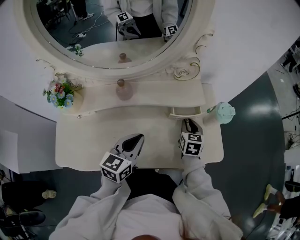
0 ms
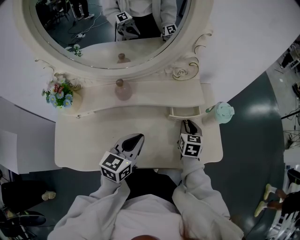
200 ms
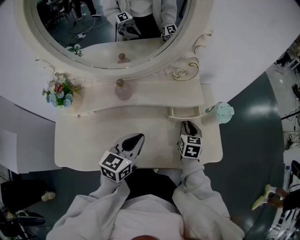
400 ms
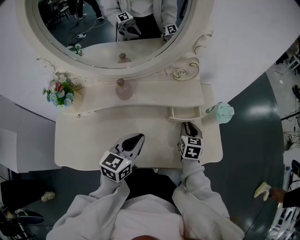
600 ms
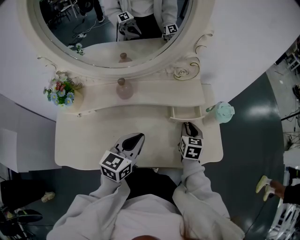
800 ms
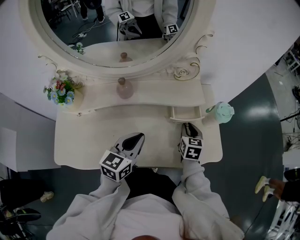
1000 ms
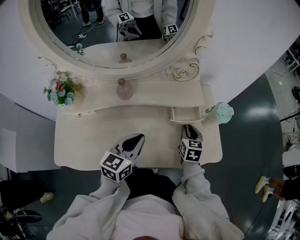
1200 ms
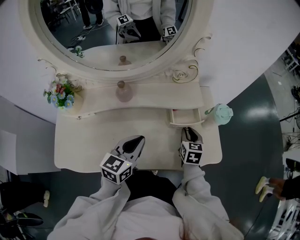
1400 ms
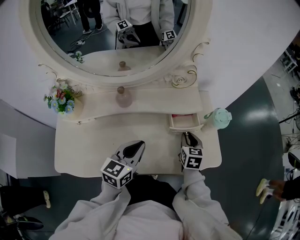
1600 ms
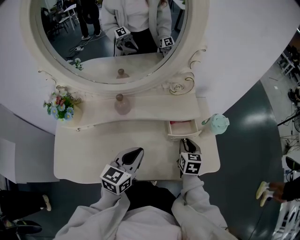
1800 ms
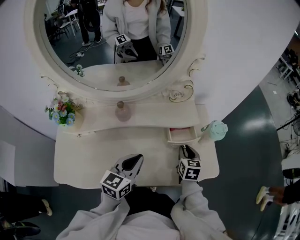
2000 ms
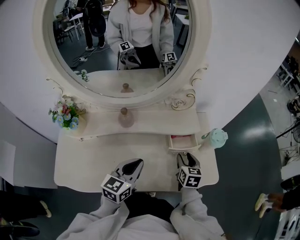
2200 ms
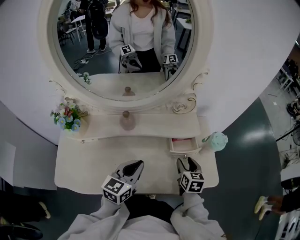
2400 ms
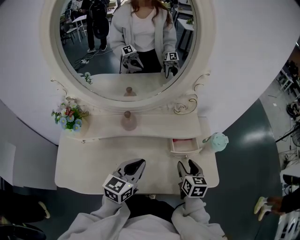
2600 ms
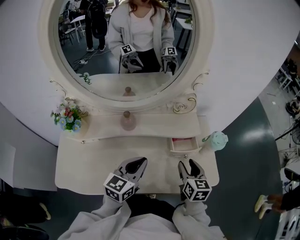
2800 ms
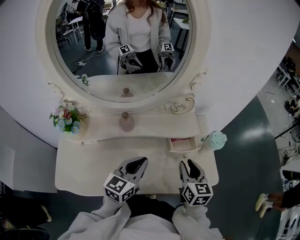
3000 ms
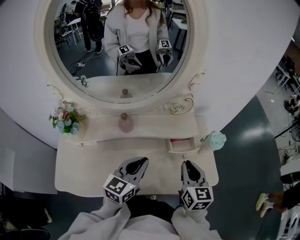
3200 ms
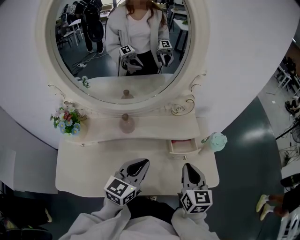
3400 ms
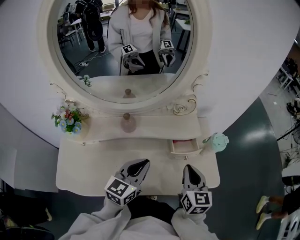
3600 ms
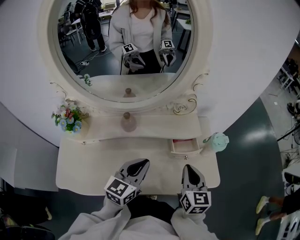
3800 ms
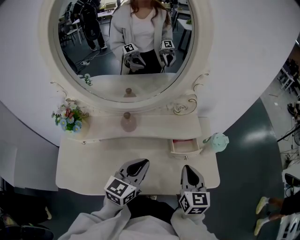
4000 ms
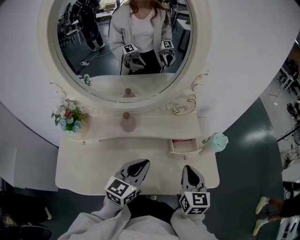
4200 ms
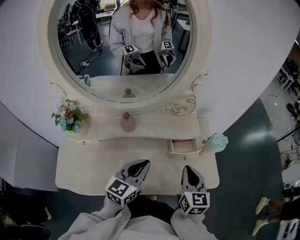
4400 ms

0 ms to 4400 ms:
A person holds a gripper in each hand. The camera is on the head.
0 ms to 1400 ms: The grippers stay close to where they were, moving slightly.
1400 ms to 3000 ms: The right gripper is displaced upward and backward by about 15 cm, and opens, then closes again.
3000 ms to 4400 ms: The right gripper closes.

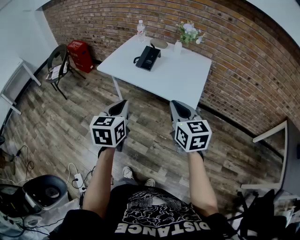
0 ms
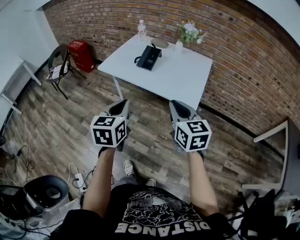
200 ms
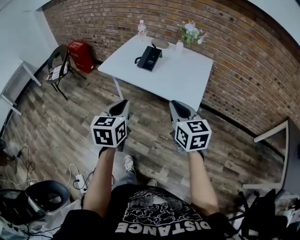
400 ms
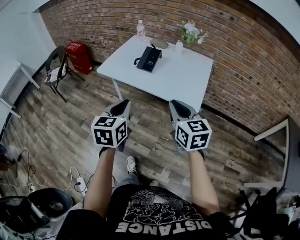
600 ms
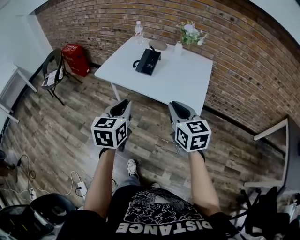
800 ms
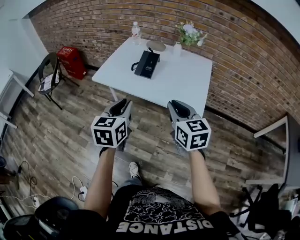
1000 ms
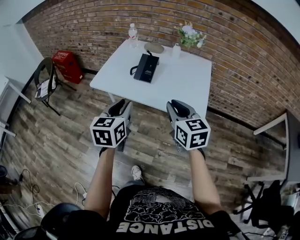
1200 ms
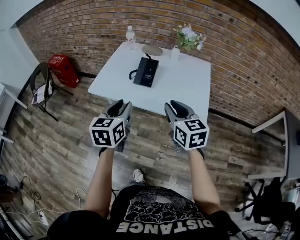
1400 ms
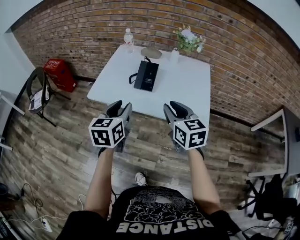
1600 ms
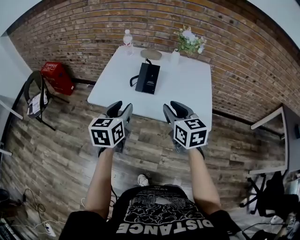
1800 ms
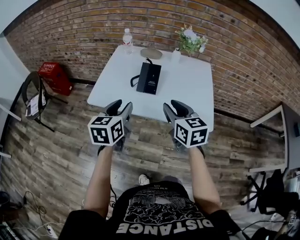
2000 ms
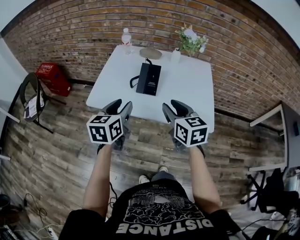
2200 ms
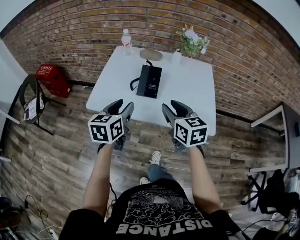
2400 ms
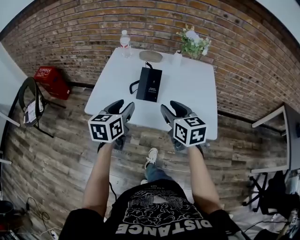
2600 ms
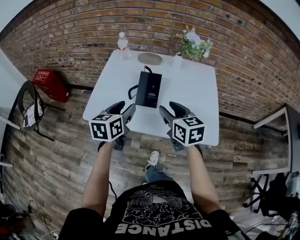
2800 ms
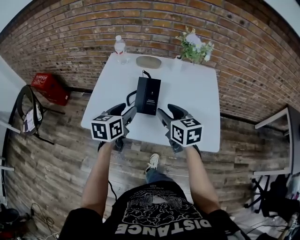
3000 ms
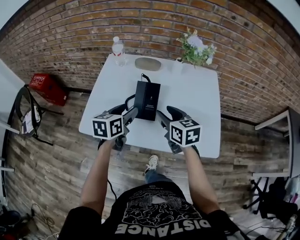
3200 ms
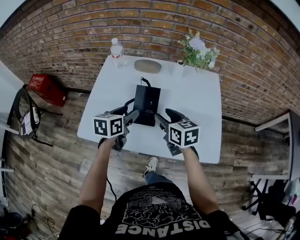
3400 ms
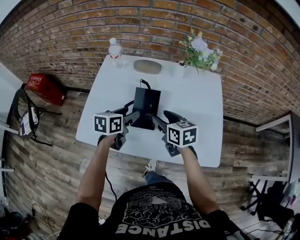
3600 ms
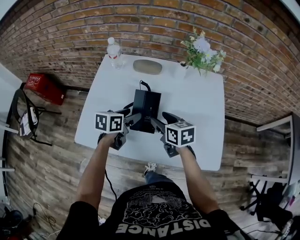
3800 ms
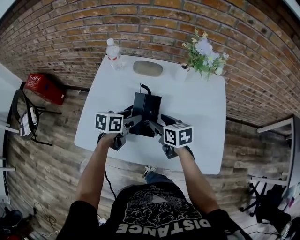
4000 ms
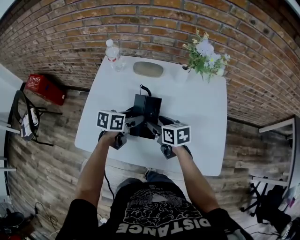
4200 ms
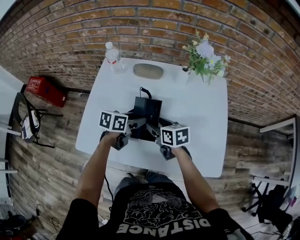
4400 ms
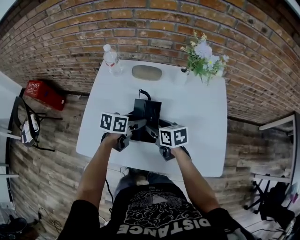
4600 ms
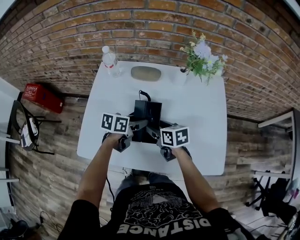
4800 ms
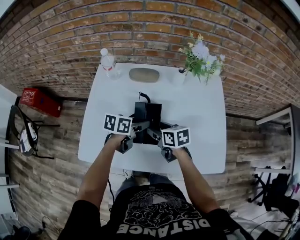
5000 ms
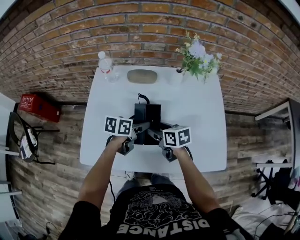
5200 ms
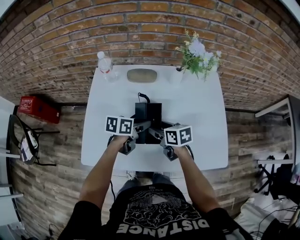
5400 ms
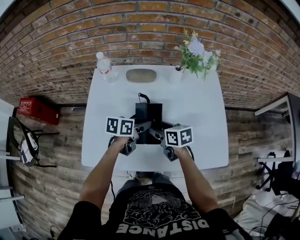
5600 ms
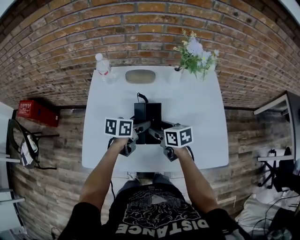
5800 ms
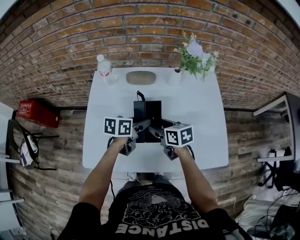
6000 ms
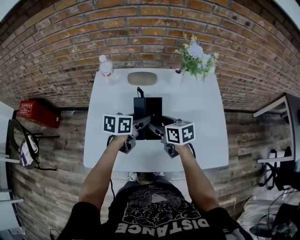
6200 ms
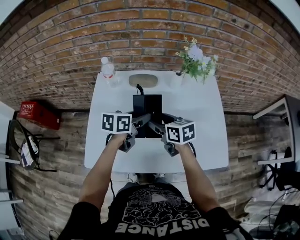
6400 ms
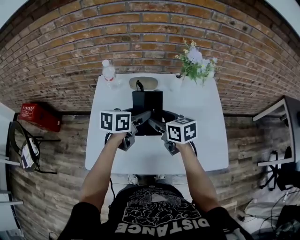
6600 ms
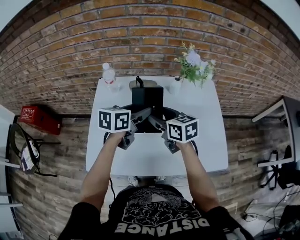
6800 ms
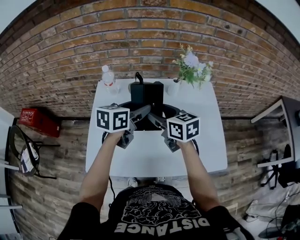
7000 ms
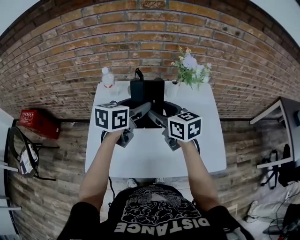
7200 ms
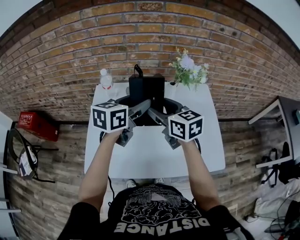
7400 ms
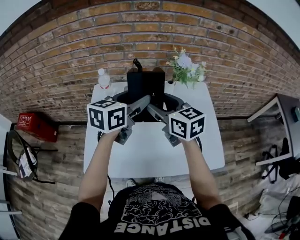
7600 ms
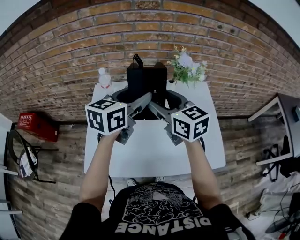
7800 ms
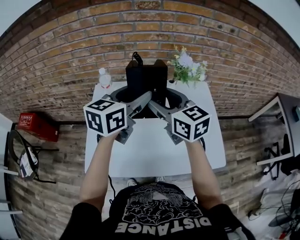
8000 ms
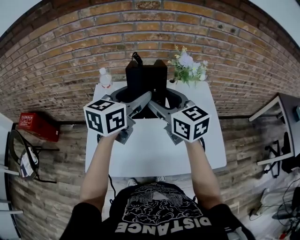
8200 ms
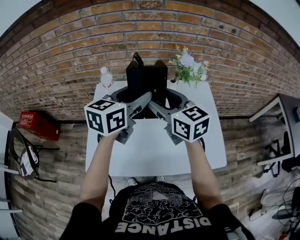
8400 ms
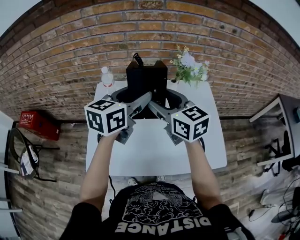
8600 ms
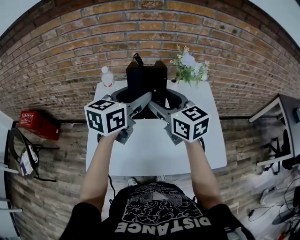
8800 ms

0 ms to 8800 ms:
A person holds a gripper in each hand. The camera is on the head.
0 ms to 1400 ms: The left gripper goes roughly 20 cm forward, and opens. Meanwhile the right gripper travels forward and to the left by approximately 20 cm.
1400 ms to 3000 ms: Both grippers travel together forward, some 25 cm. The right gripper opens up.
3000 ms to 4400 ms: The left gripper moves forward and downward, about 20 cm, and swivels approximately 30 degrees. Meanwhile the right gripper goes approximately 20 cm downward and forward, and turns by about 20 degrees.
4400 ms to 5800 ms: The grippers move only a little.
5800 ms to 7400 ms: Both grippers move upward, approximately 20 cm. The right gripper rotates some 30 degrees; the left gripper rotates approximately 30 degrees.
7400 ms to 8800 ms: The right gripper shifts by about 5 cm. Meanwhile the left gripper travels upward by approximately 5 cm.

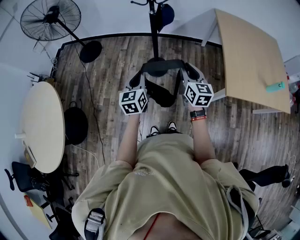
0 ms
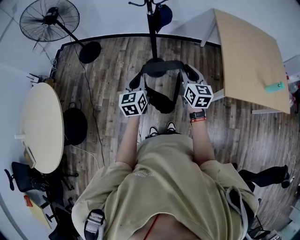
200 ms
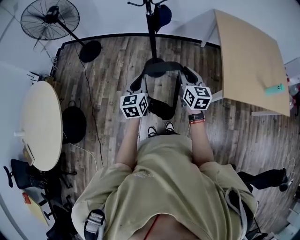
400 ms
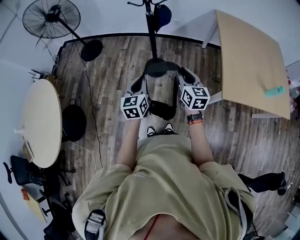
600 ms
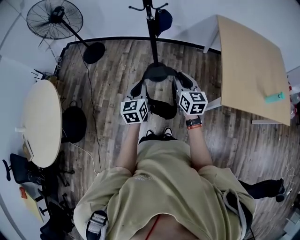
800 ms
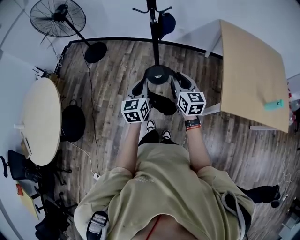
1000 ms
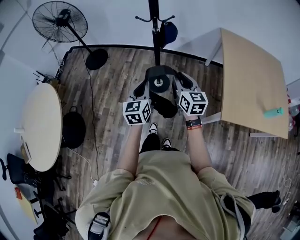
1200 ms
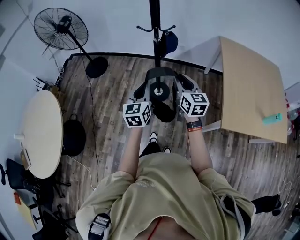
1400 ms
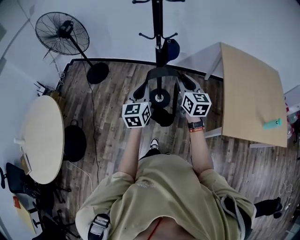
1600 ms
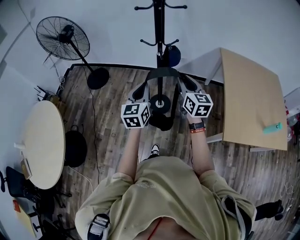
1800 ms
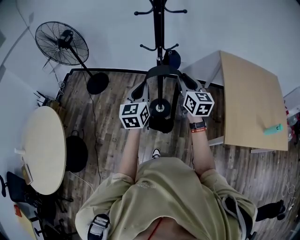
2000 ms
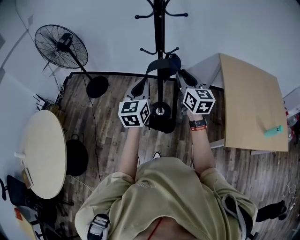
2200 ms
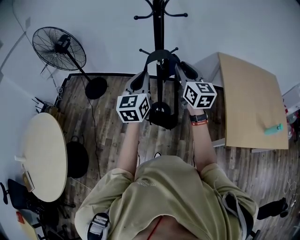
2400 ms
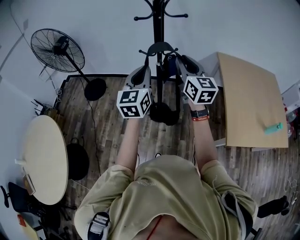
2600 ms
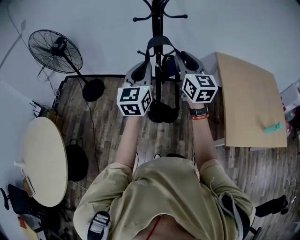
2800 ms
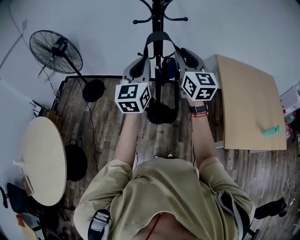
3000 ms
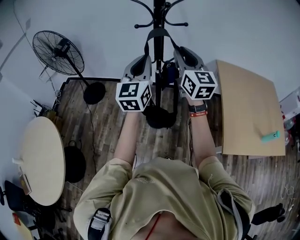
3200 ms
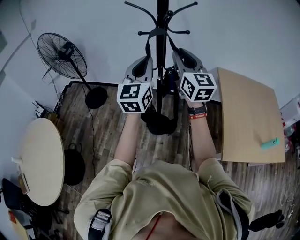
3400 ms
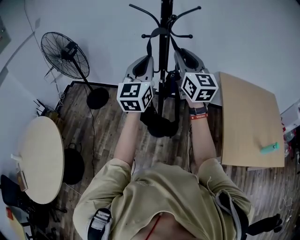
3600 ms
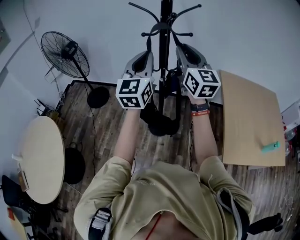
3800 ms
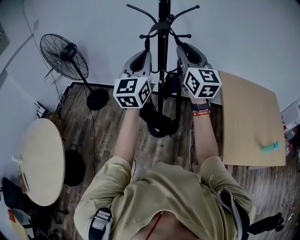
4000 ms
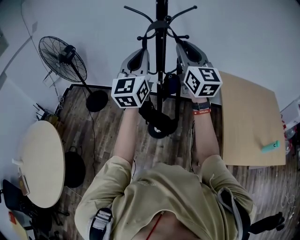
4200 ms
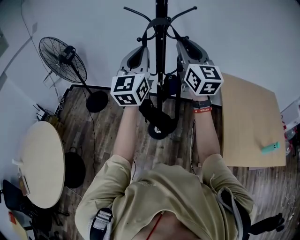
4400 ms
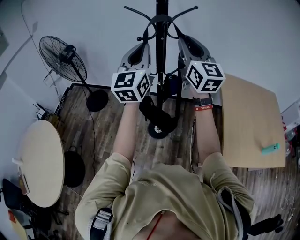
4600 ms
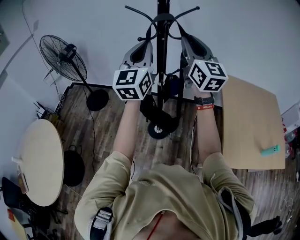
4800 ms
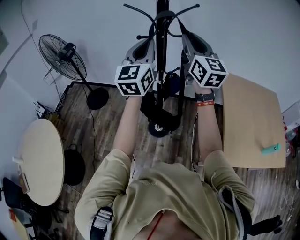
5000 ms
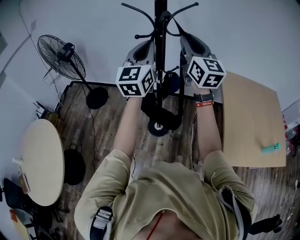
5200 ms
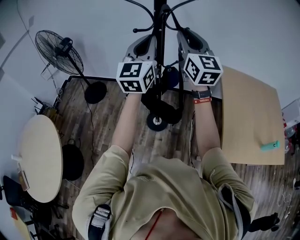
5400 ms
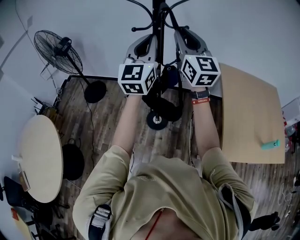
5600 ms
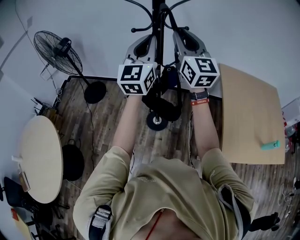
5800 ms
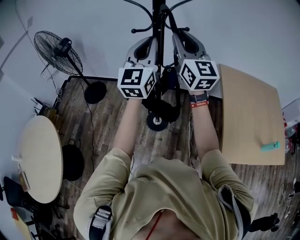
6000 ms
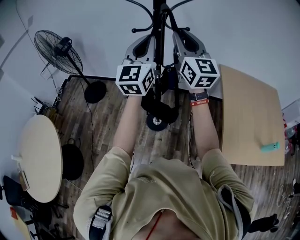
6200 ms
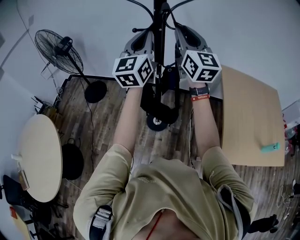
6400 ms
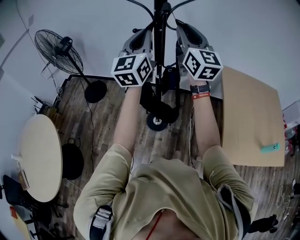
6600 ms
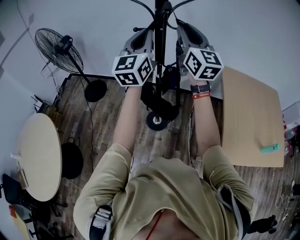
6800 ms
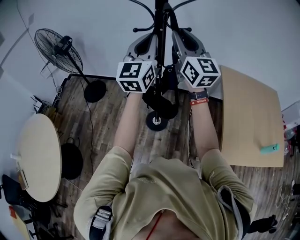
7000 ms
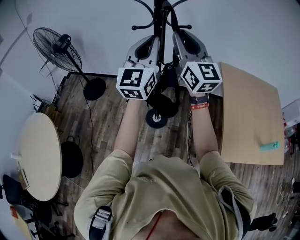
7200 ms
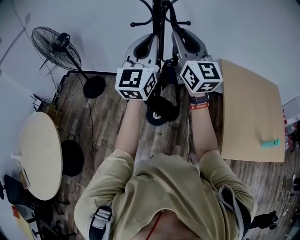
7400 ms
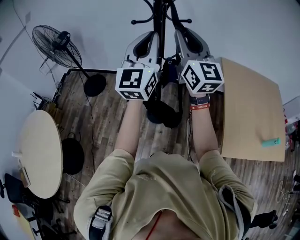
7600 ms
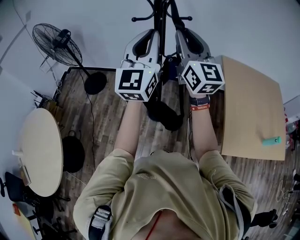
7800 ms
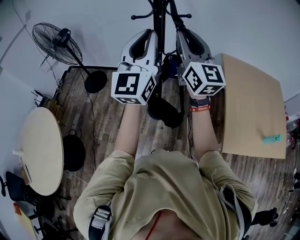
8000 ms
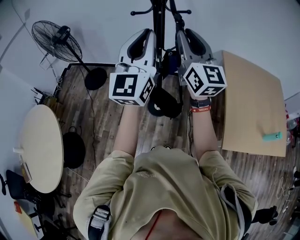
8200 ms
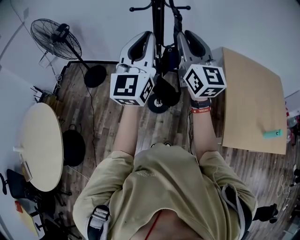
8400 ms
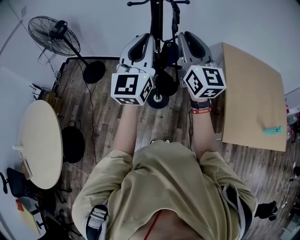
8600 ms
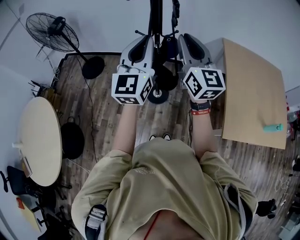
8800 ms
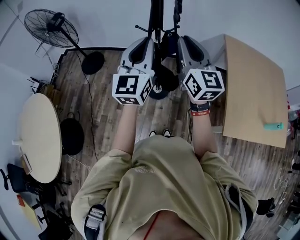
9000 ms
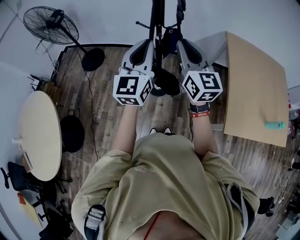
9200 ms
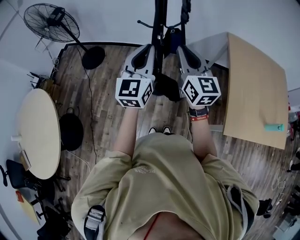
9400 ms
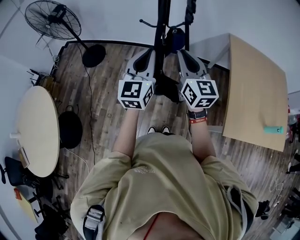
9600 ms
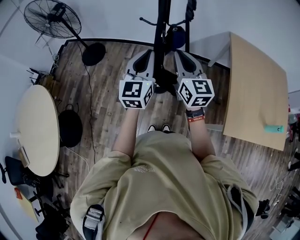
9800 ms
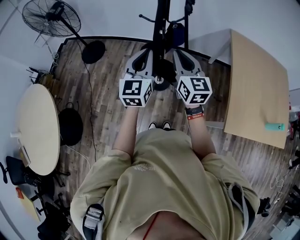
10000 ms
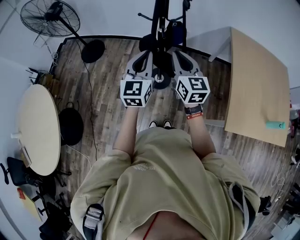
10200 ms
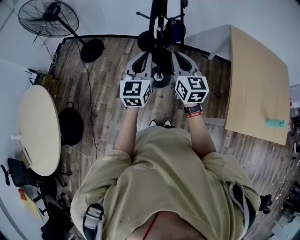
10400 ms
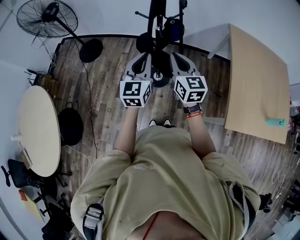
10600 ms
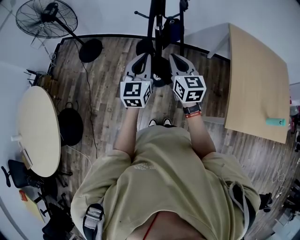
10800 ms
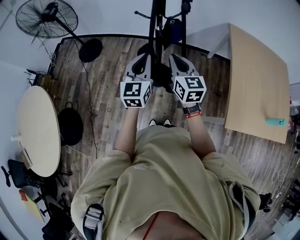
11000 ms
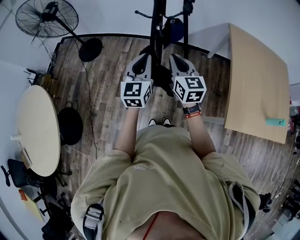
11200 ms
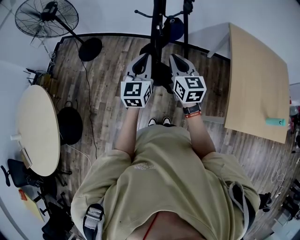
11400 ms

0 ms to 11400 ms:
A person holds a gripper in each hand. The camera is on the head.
0 ms to 1400 ms: The right gripper travels forward and upward by approximately 10 cm, while the left gripper is displaced forward, upward and to the right by about 10 cm.
1400 ms to 2800 ms: Both grippers move upward and forward, approximately 25 cm.
2800 ms to 4200 ms: Both grippers move upward, about 15 cm.
4200 ms to 5600 ms: The two grippers go about 5 cm forward.
5600 ms to 7200 ms: The grippers move only a little.
7200 ms to 8600 ms: The left gripper goes approximately 10 cm backward and downward; the right gripper travels downward and backward by roughly 10 cm.
8600 ms to 10000 ms: The grippers both shift downward by some 20 cm.
10000 ms to 11400 ms: Both grippers travel together downward, about 5 cm.
